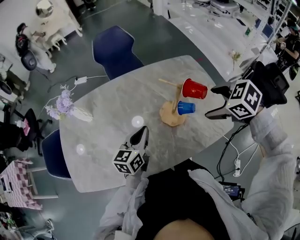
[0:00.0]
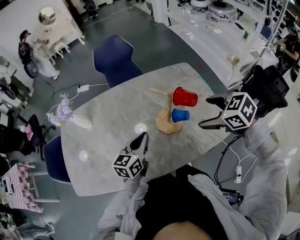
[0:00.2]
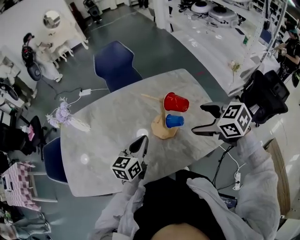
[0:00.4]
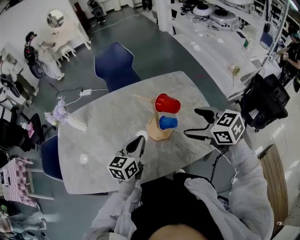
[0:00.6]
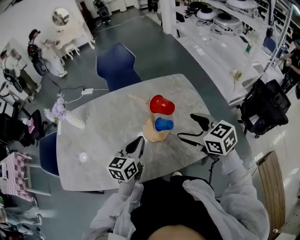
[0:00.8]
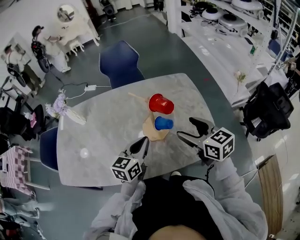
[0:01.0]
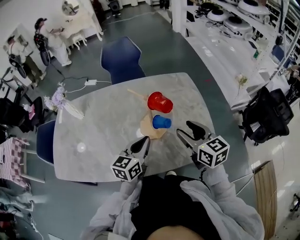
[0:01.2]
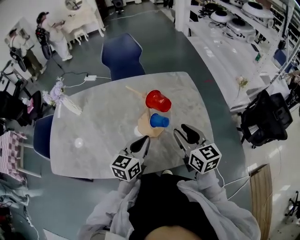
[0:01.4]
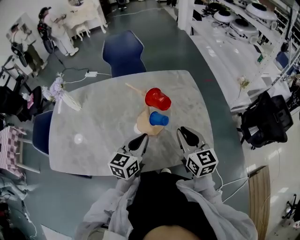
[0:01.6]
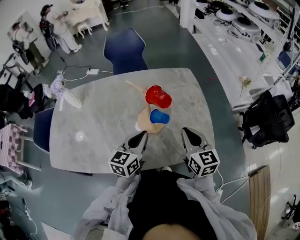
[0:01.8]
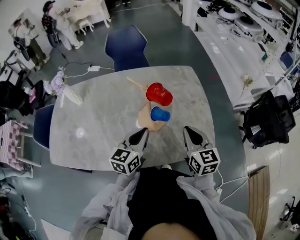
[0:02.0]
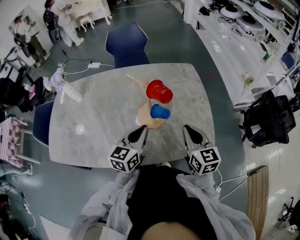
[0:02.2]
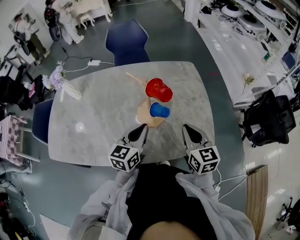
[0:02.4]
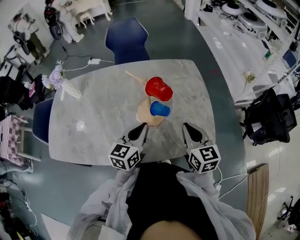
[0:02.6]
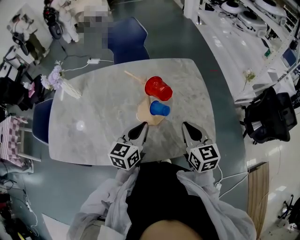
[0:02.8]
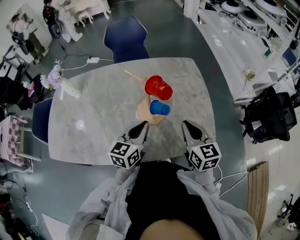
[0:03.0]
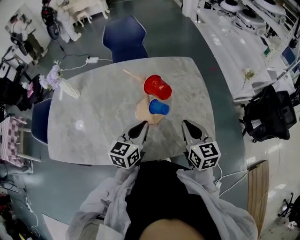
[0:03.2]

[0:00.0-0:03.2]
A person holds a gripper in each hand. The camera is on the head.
0:00.0 to 0:01.6: The right gripper heads to the right and downward, covering some 10 cm, tips its fingers upward by some 50 degrees, and closes its fingers. The left gripper heads to the right, covering roughly 15 cm.
0:01.6 to 0:03.2: The grippers move only a little.

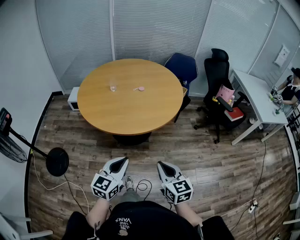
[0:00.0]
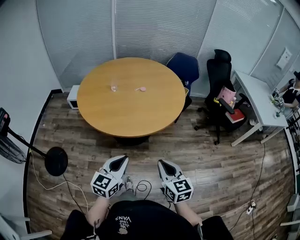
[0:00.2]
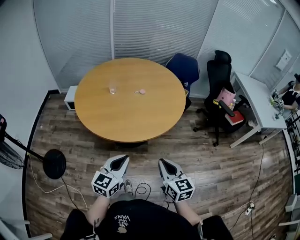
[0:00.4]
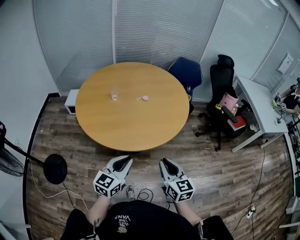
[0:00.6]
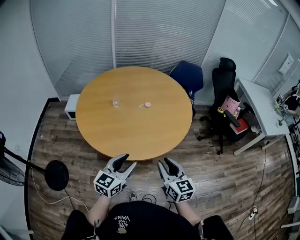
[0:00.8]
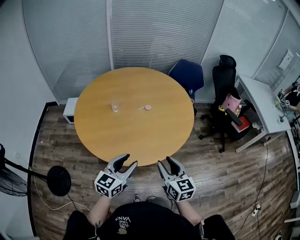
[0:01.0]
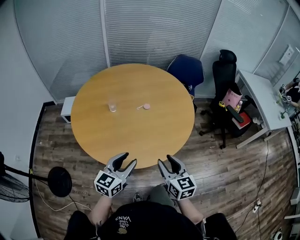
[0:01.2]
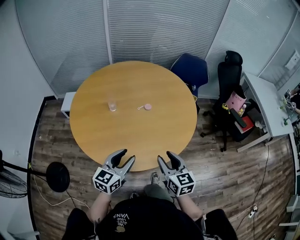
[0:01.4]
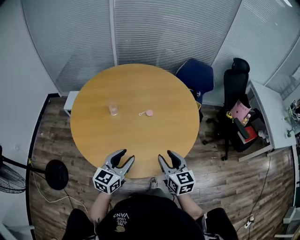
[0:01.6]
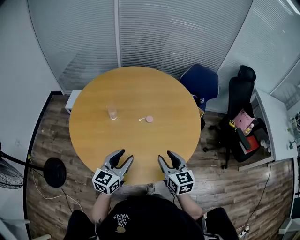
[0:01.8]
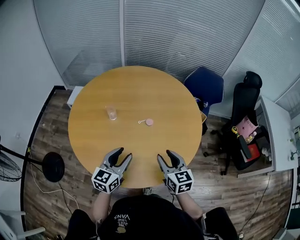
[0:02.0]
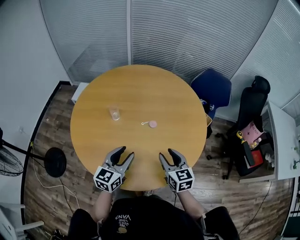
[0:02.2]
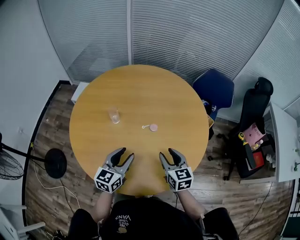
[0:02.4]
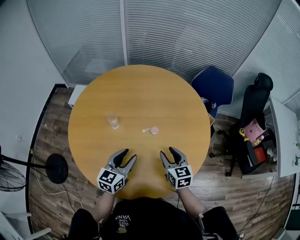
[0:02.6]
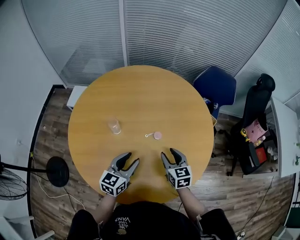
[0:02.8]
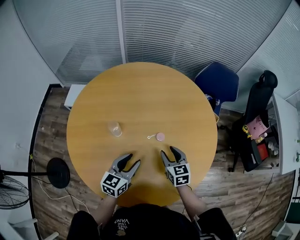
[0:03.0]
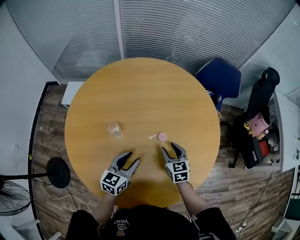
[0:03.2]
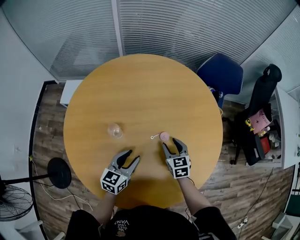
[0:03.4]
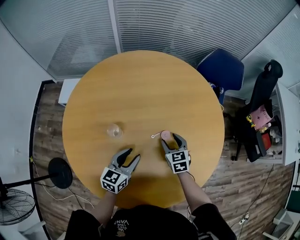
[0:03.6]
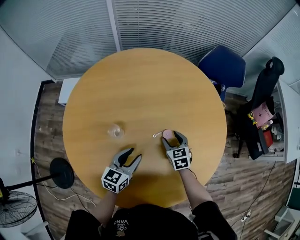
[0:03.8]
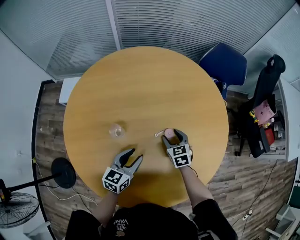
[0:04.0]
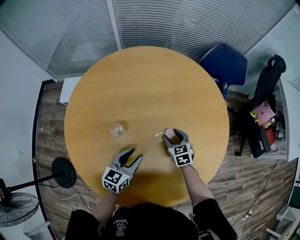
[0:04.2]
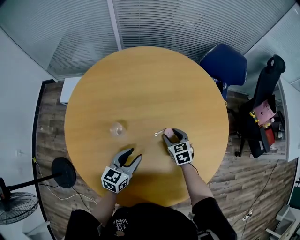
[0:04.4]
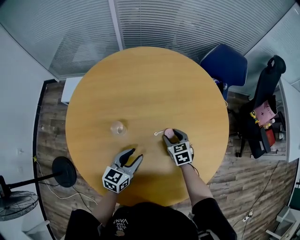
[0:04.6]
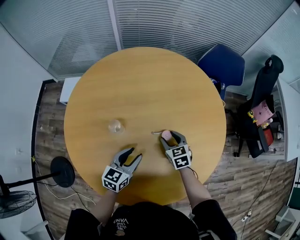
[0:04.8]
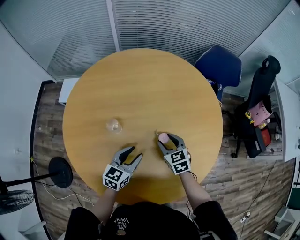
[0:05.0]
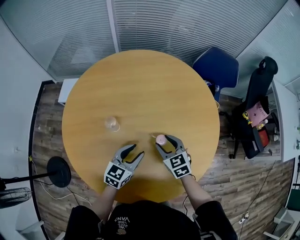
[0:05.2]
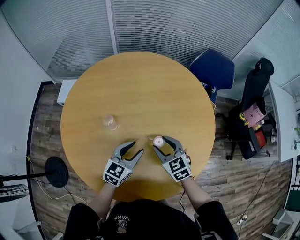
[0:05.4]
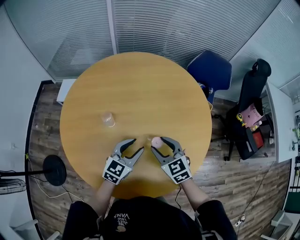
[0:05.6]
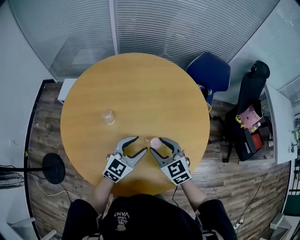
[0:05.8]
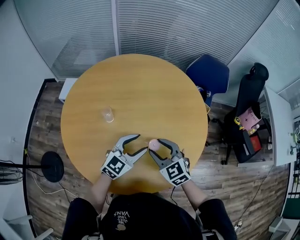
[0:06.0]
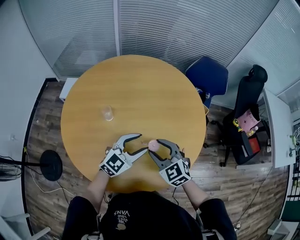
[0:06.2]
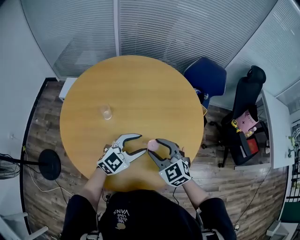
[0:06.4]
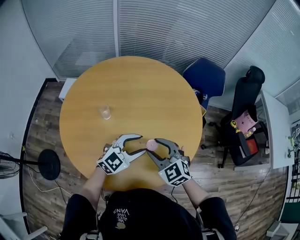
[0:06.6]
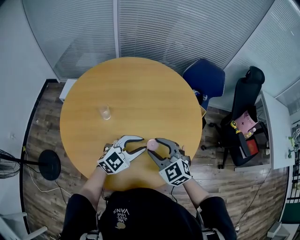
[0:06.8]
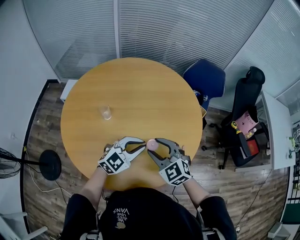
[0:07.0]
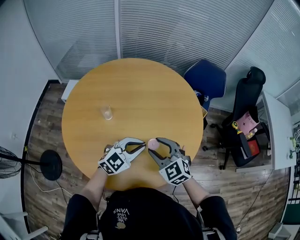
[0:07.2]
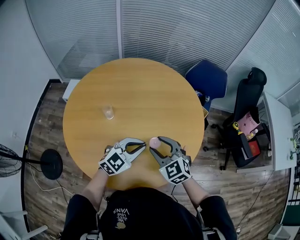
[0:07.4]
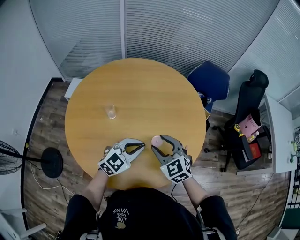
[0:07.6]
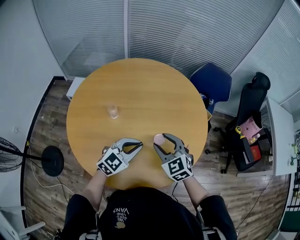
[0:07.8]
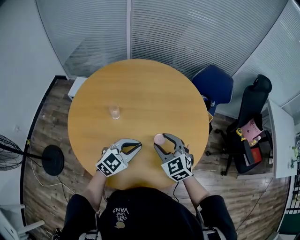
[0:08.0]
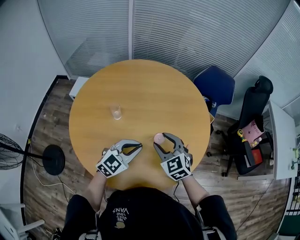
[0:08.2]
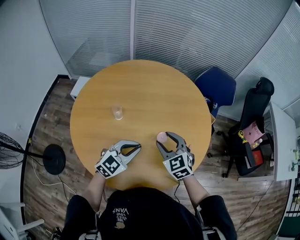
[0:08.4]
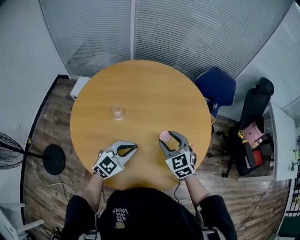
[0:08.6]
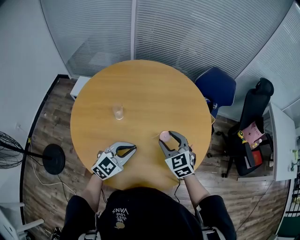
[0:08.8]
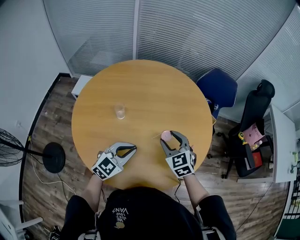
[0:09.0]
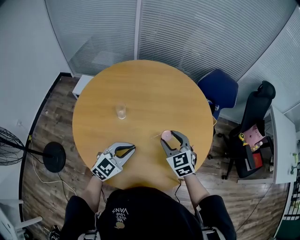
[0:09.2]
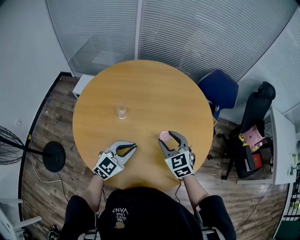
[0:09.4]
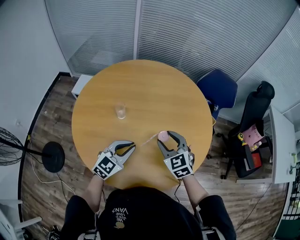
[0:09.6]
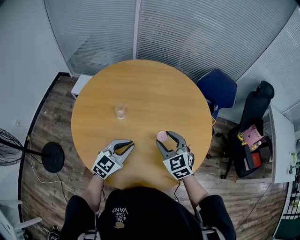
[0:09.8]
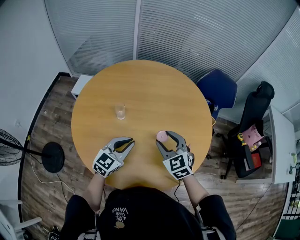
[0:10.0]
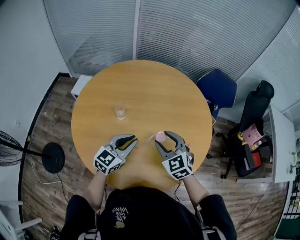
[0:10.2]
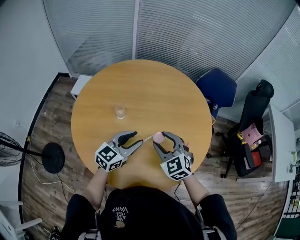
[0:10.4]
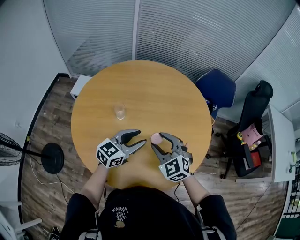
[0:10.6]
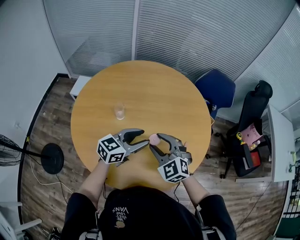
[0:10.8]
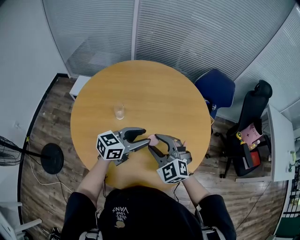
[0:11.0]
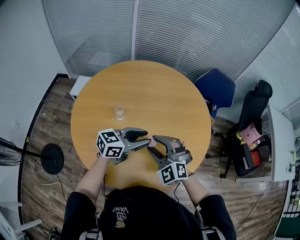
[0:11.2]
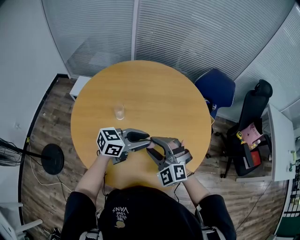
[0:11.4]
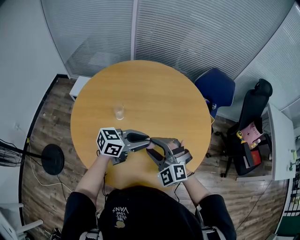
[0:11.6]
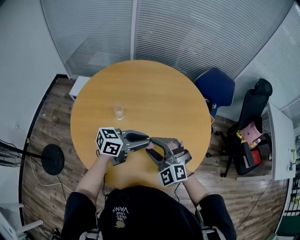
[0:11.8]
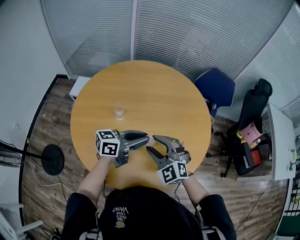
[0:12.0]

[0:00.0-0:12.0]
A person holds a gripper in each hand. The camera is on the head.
0:00.0 to 0:01.6: Both grippers travel together forward, about 35 cm. The left gripper opens up. The right gripper opens.
0:01.6 to 0:03.0: The grippers both shift forward and downward by approximately 25 cm.
0:03.0 to 0:04.4: The left gripper is displaced downward by approximately 5 cm. Meanwhile the right gripper travels downward and forward by roughly 10 cm.
0:04.4 to 0:06.0: The left gripper shifts about 15 cm to the right and upward, and changes its angle by approximately 30 degrees; the right gripper shifts roughly 25 cm upward and backward, and rotates some 30 degrees.
0:06.0 to 0:07.6: The left gripper closes its fingers.
0:07.6 to 0:09.0: The left gripper moves to the left, roughly 5 cm.
0:09.0 to 0:10.4: The left gripper moves about 5 cm, rotates approximately 20 degrees, and opens.
0:10.4 to 0:12.0: The left gripper swivels about 30 degrees.

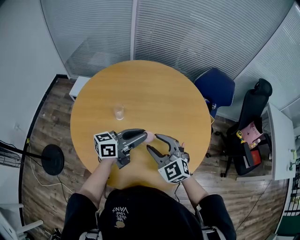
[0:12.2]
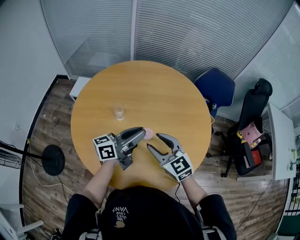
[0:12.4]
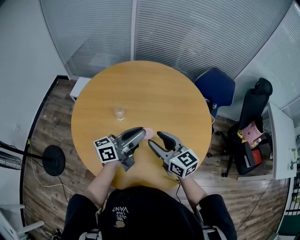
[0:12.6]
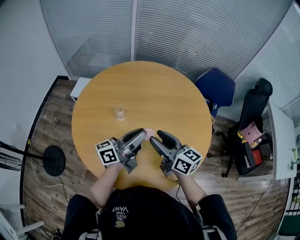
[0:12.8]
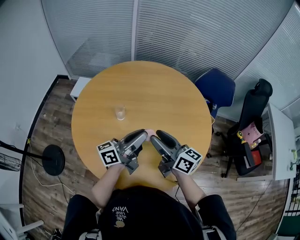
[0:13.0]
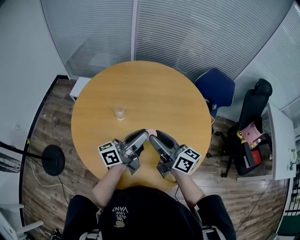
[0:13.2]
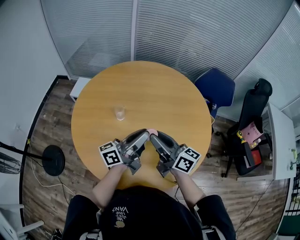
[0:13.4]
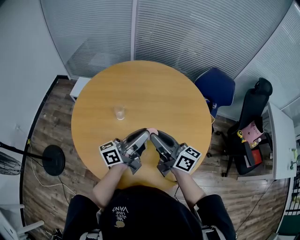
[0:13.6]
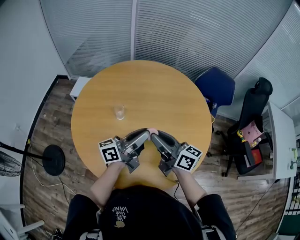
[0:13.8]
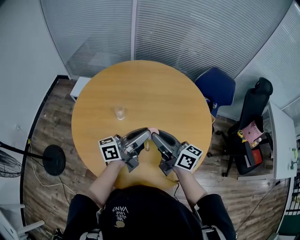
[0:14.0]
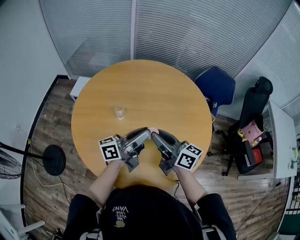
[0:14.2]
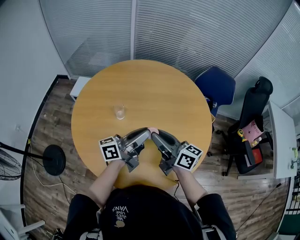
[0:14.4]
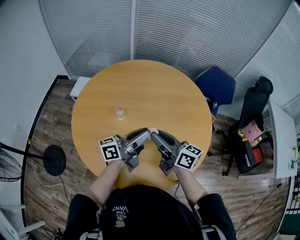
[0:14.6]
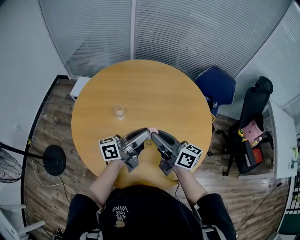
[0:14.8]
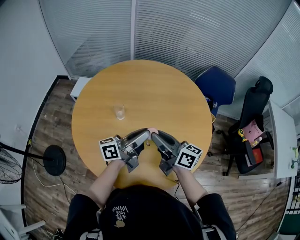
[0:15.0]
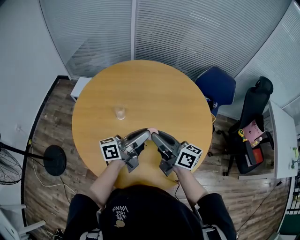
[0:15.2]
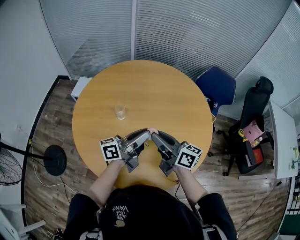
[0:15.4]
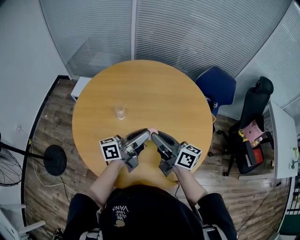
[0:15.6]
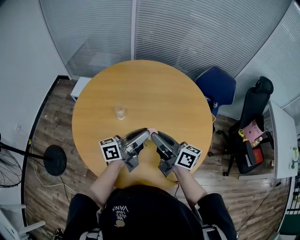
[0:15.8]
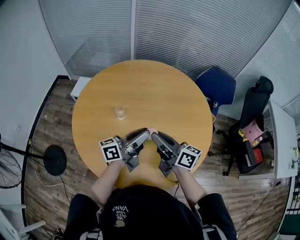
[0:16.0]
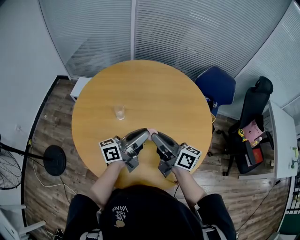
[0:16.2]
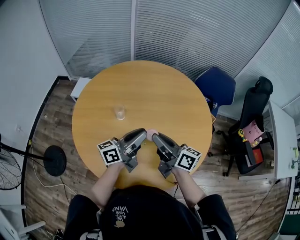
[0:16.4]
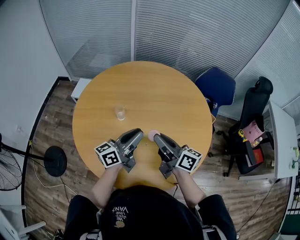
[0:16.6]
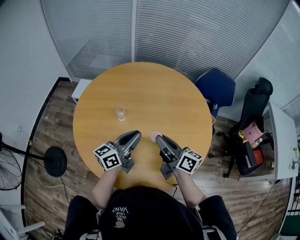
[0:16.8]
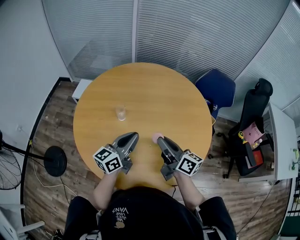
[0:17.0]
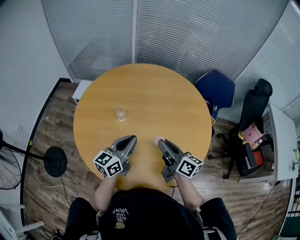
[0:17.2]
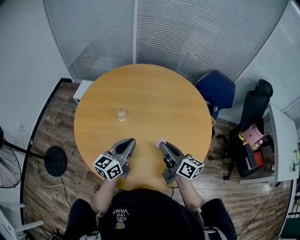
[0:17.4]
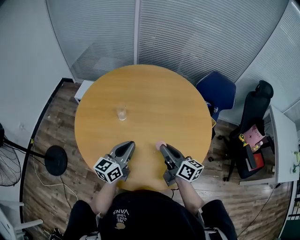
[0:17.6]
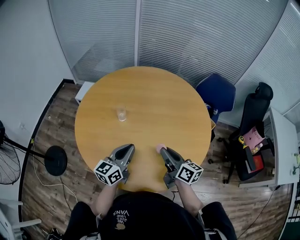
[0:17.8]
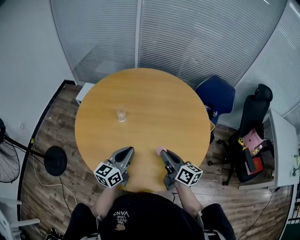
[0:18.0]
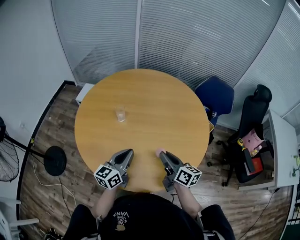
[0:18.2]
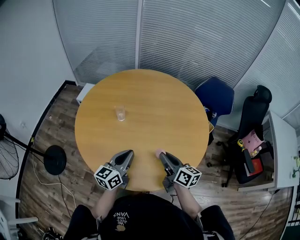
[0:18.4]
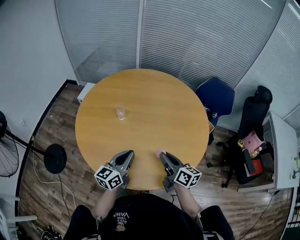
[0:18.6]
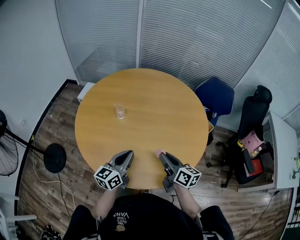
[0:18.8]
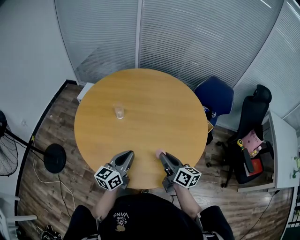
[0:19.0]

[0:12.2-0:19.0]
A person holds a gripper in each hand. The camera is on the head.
0:12.2 to 0:13.6: The left gripper turns by approximately 20 degrees; the right gripper moves upward, some 5 cm, twists some 70 degrees clockwise, seen from behind, and closes its fingers.
0:13.6 to 0:15.0: The grippers make only small movements.
0:15.0 to 0:16.2: The two grippers keep their place.
0:16.2 to 0:17.6: The left gripper travels backward by about 5 cm, and swivels roughly 40 degrees, while the right gripper shifts approximately 10 cm to the right and downward.
0:17.6 to 0:19.0: The grippers both shift backward by about 5 cm.

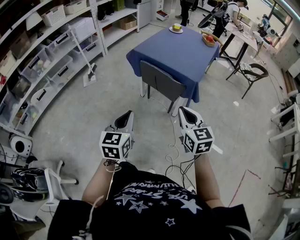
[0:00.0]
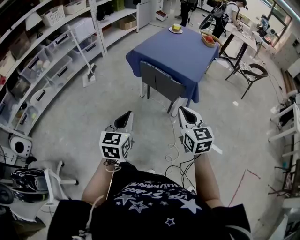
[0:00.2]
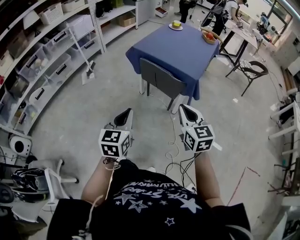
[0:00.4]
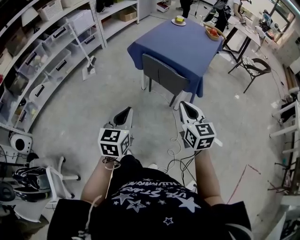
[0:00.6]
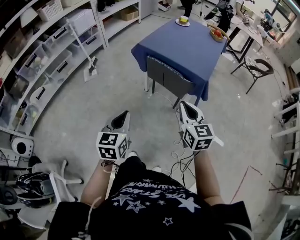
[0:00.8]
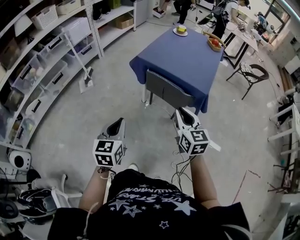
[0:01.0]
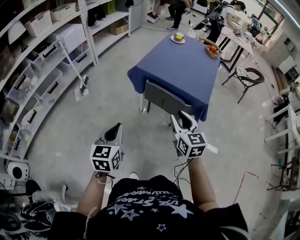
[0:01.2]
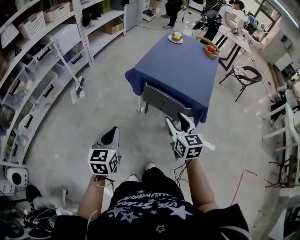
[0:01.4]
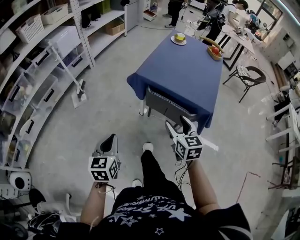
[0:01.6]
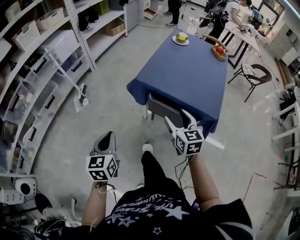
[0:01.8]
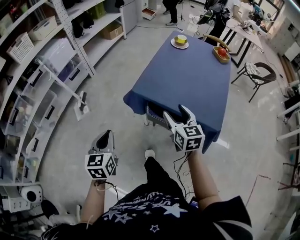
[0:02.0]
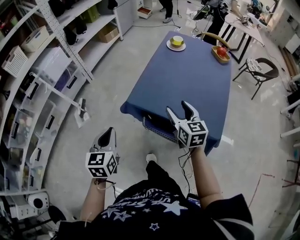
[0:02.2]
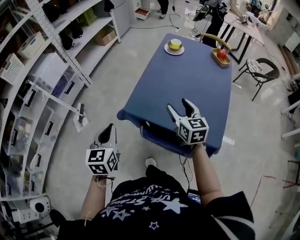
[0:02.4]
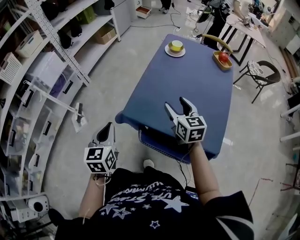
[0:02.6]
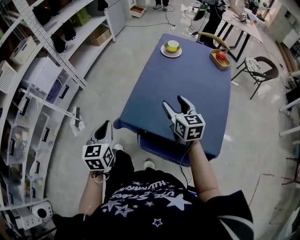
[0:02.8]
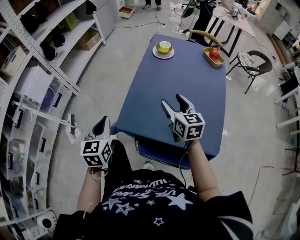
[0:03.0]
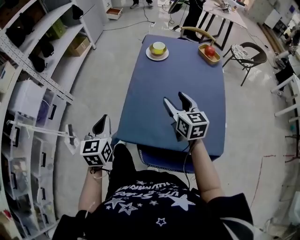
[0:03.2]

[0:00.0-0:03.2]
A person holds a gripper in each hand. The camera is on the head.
0:00.0 to 0:01.6: Both grippers move forward and to the left, roughly 30 cm. The right gripper opens up.
0:01.6 to 0:03.2: The pair of grippers is taken forward, some 50 cm.
